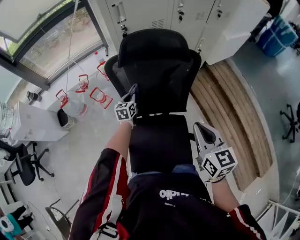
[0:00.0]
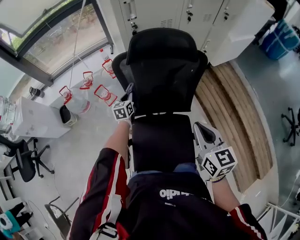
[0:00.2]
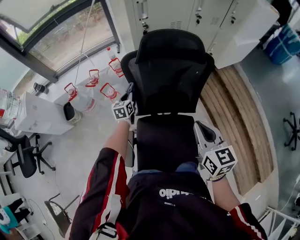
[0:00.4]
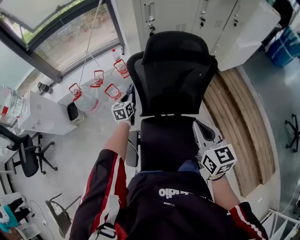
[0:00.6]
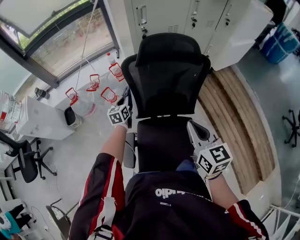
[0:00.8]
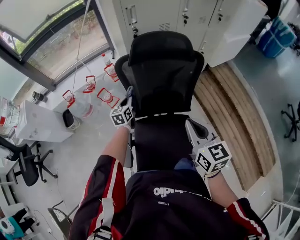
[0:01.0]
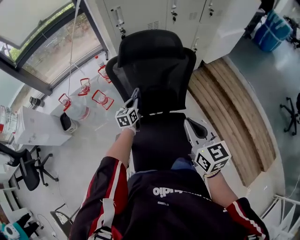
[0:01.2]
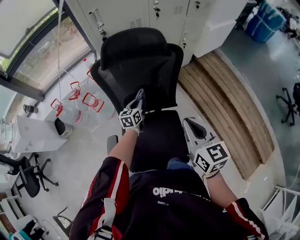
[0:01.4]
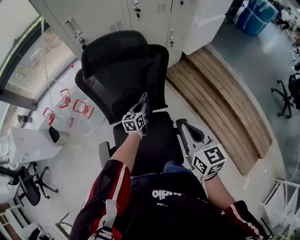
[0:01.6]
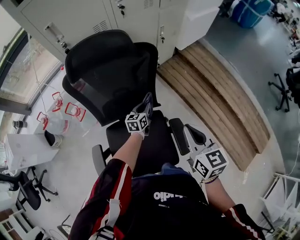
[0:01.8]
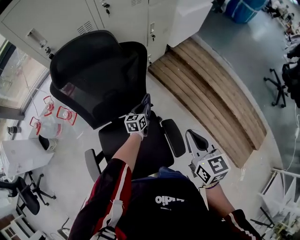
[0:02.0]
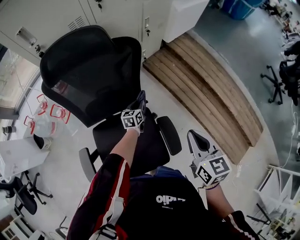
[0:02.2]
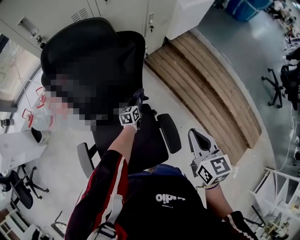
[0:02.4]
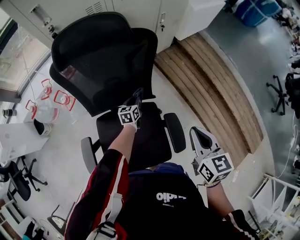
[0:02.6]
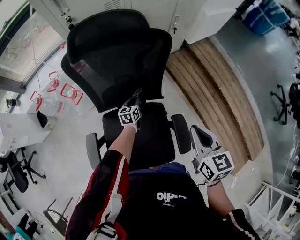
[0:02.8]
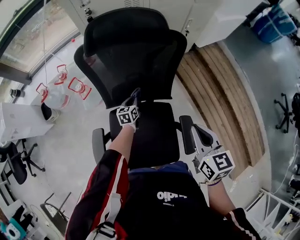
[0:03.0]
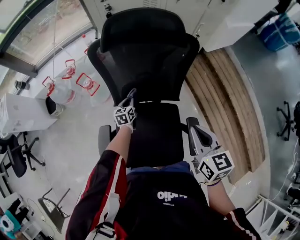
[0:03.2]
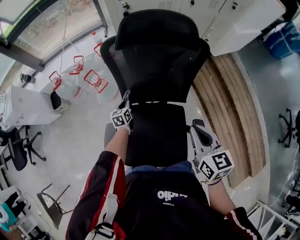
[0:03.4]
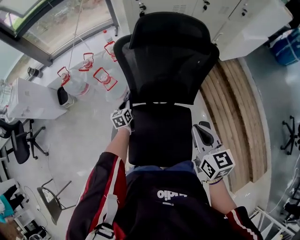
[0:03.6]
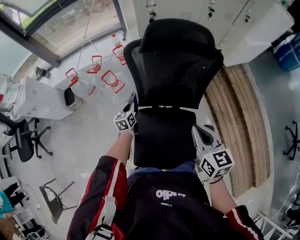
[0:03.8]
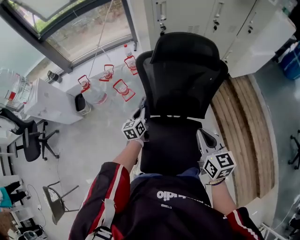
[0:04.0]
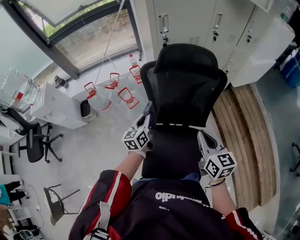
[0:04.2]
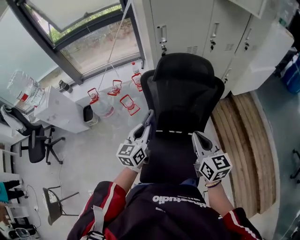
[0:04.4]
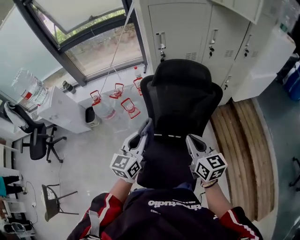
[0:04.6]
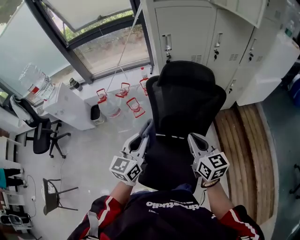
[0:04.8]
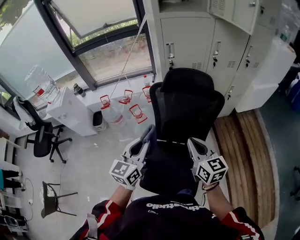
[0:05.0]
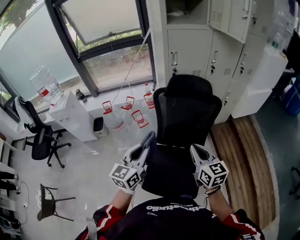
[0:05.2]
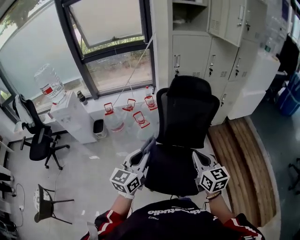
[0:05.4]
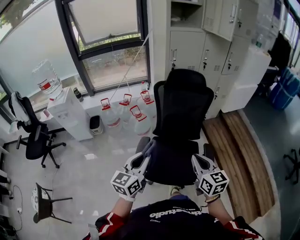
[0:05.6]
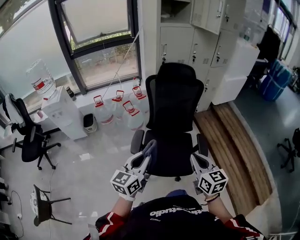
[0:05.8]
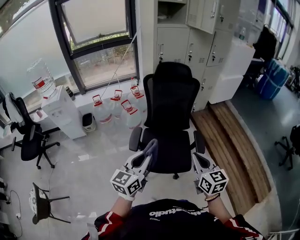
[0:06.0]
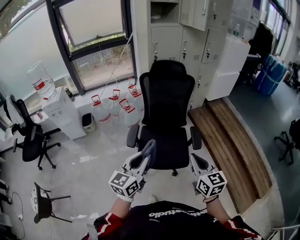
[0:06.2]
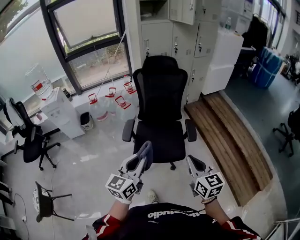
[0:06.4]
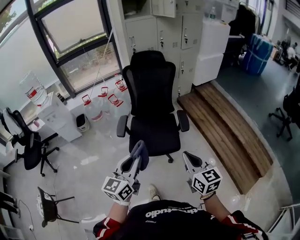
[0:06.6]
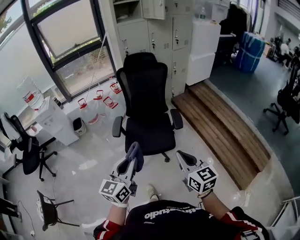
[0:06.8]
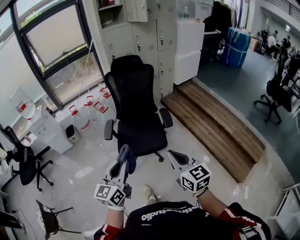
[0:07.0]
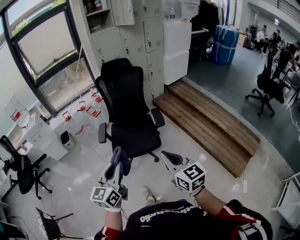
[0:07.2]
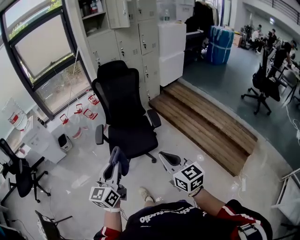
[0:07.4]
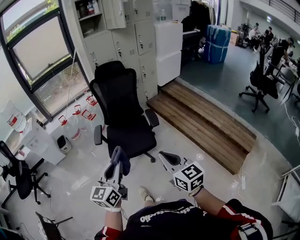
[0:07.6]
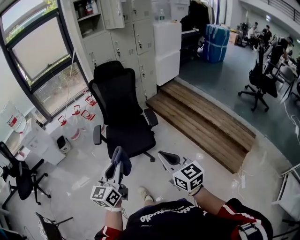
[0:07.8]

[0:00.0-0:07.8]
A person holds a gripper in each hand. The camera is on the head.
0:00.0 to 0:01.6: The right gripper moves to the right, some 10 cm, while the left gripper is displaced to the right by roughly 20 cm.
0:01.6 to 0:03.2: The right gripper moves about 15 cm to the right and comes back. Meanwhile the left gripper travels to the left and downward by about 20 cm.
0:03.2 to 0:04.6: The left gripper heads upward, covering roughly 40 cm, and rotates approximately 30 degrees. The right gripper shifts roughly 15 cm upward and to the left, and turns by about 20 degrees.
0:04.6 to 0:06.2: The two grippers travel together, backward, about 50 cm.
0:06.2 to 0:07.8: The right gripper goes approximately 25 cm backward. Meanwhile the left gripper goes about 25 cm backward and to the right.

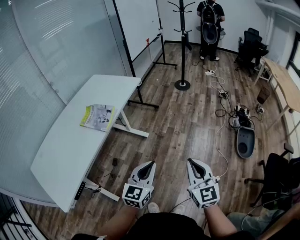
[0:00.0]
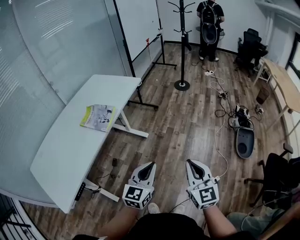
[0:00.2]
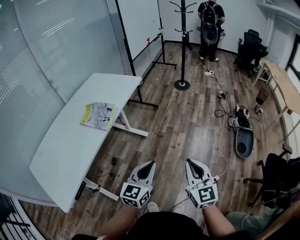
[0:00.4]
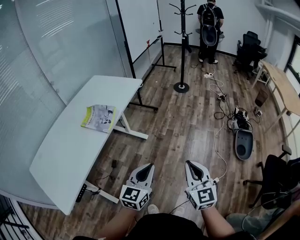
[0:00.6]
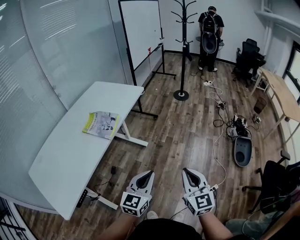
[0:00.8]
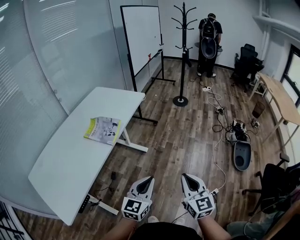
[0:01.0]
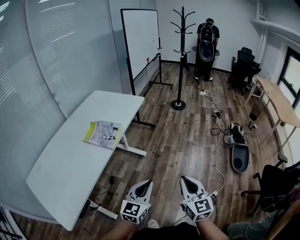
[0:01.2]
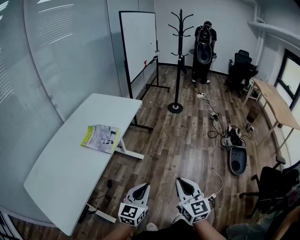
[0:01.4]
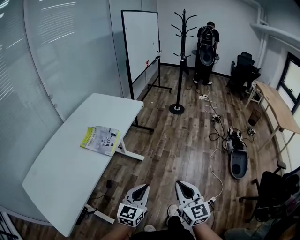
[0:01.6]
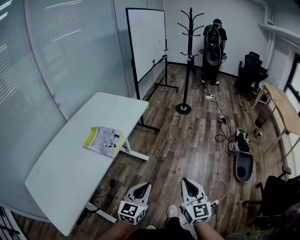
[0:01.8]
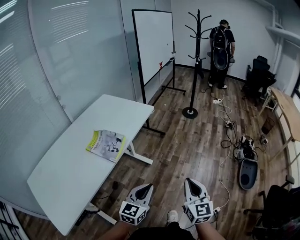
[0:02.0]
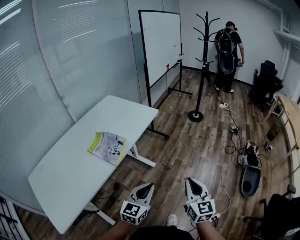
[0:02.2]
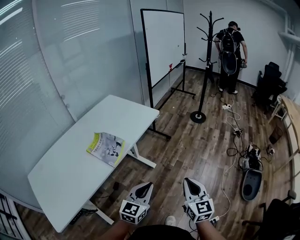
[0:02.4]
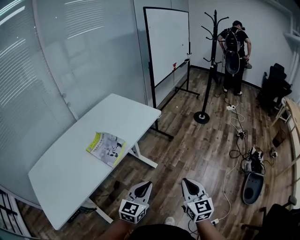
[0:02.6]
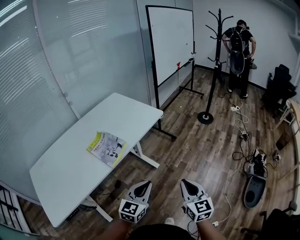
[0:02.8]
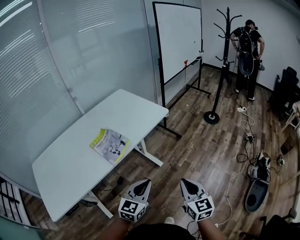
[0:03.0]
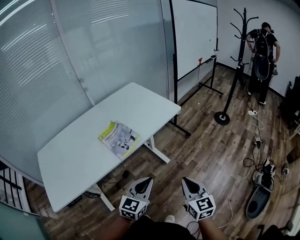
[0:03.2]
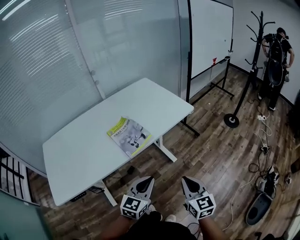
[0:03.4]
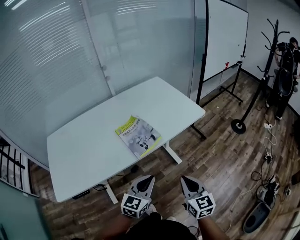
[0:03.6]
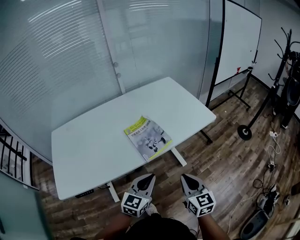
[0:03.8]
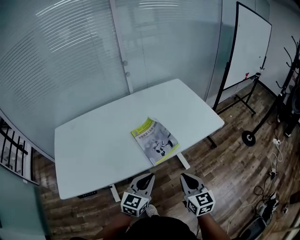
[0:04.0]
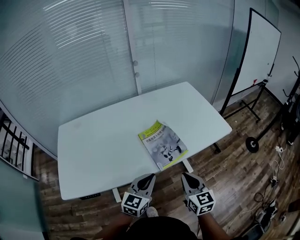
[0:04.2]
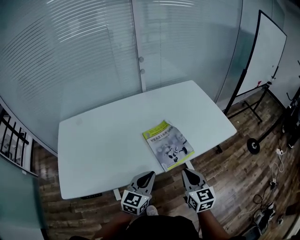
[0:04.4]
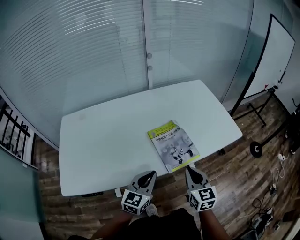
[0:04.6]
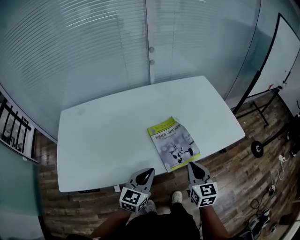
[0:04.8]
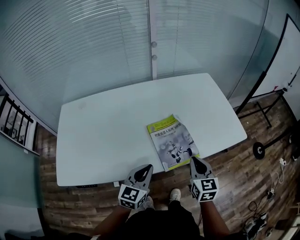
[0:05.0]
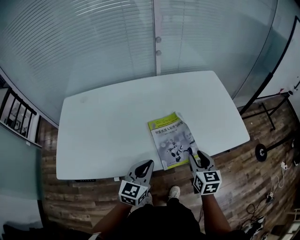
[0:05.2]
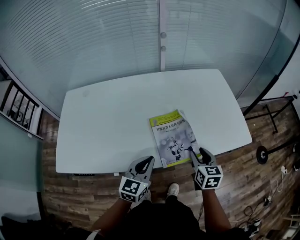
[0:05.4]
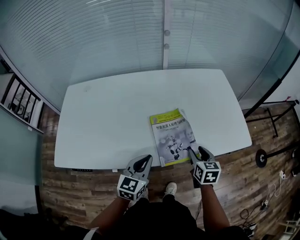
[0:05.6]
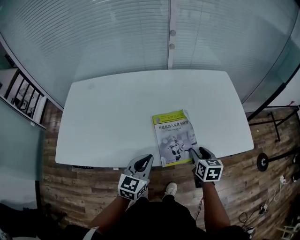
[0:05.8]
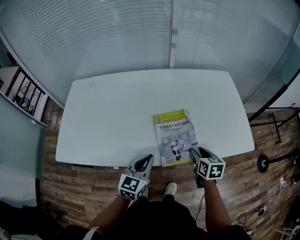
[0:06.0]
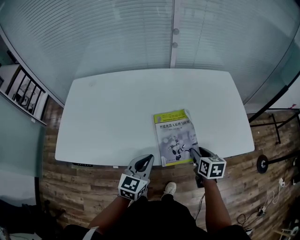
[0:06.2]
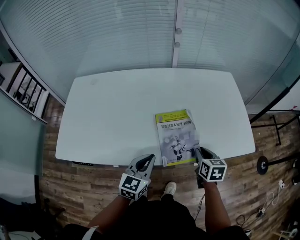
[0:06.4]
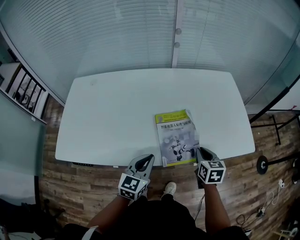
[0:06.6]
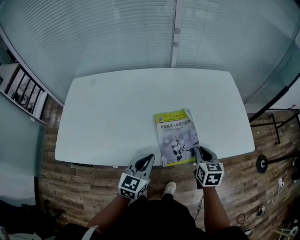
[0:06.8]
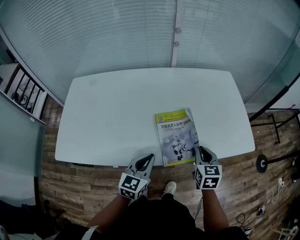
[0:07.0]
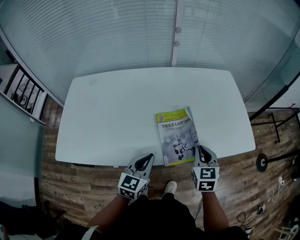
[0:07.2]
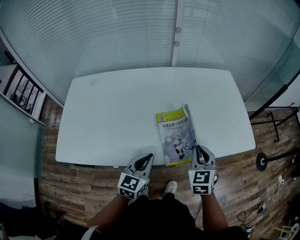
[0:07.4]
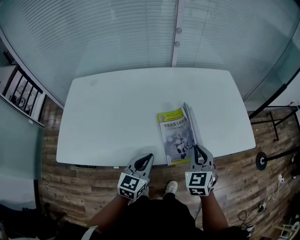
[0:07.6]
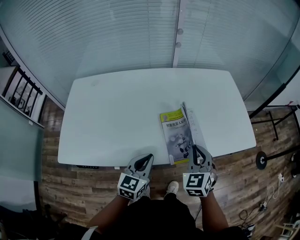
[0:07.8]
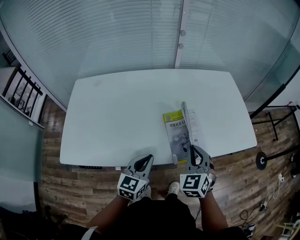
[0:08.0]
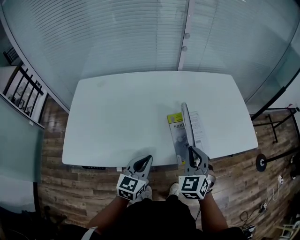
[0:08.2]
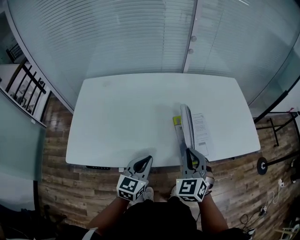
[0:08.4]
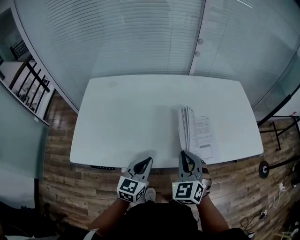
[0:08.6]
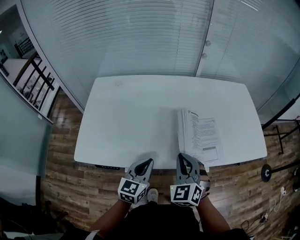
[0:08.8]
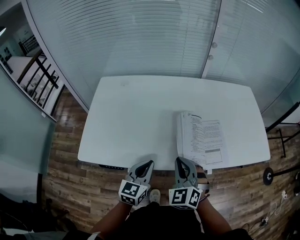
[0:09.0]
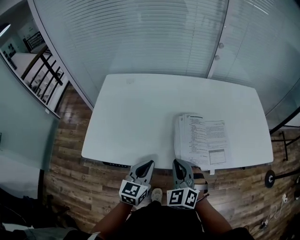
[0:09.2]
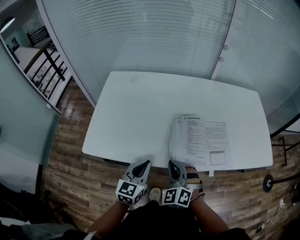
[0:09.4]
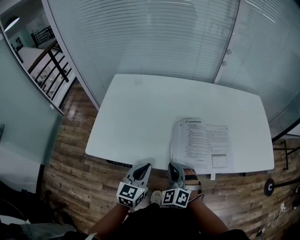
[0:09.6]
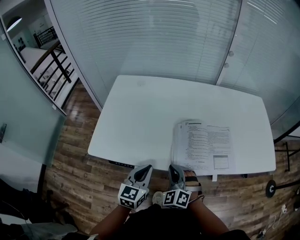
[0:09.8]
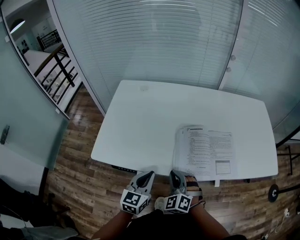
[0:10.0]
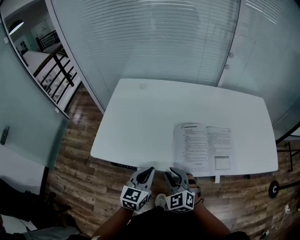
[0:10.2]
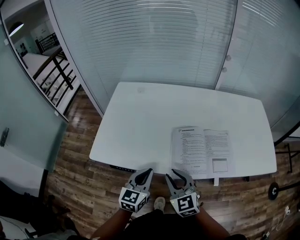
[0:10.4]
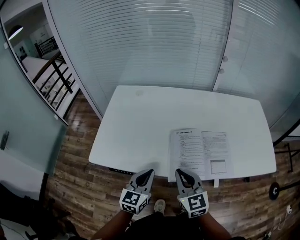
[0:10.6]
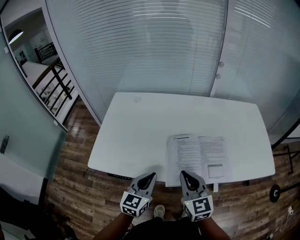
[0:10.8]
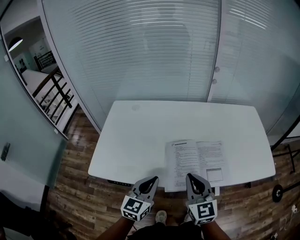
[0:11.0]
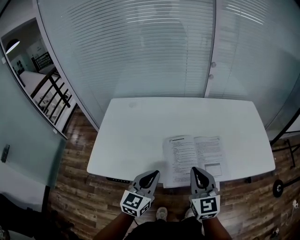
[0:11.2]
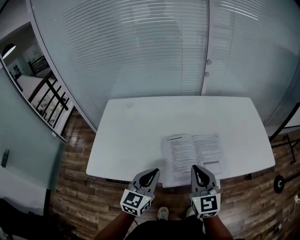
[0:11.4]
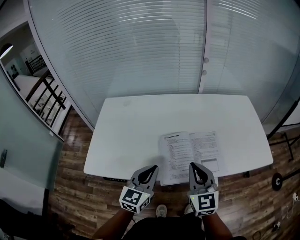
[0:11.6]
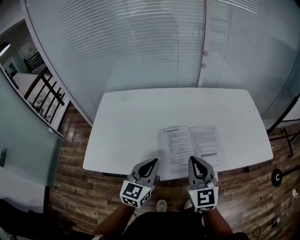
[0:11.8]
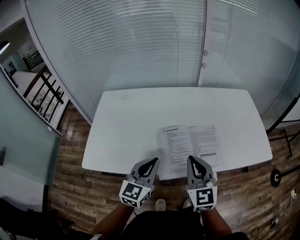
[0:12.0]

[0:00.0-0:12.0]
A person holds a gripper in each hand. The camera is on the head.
0:00.0 to 0:01.6: The grippers both shift to the left by some 10 cm.
0:01.6 to 0:03.0: The grippers both shift forward by some 20 cm. The right gripper changes its angle by roughly 20 degrees.
0:03.0 to 0:04.4: The left gripper shifts by some 25 cm, and turns by about 30 degrees; the right gripper moves roughly 30 cm, and swivels roughly 30 degrees.
0:04.4 to 0:06.0: The left gripper ends up some 5 cm from where it was, and swivels roughly 20 degrees; the right gripper is displaced forward and downward by roughly 20 cm, changes its angle by approximately 30 degrees, and opens.
0:06.0 to 0:07.6: The right gripper shifts approximately 10 cm upward and to the left, rotates about 40 degrees, and closes up.
0:07.6 to 0:09.0: The left gripper heads to the left, covering about 15 cm. Meanwhile the right gripper travels to the left and backward by approximately 25 cm, and turns by roughly 30 degrees.
0:09.0 to 0:10.4: The right gripper heads to the left, covering some 5 cm, turns by some 30 degrees, and opens up, while the left gripper changes place by roughly 5 cm.
0:10.4 to 0:12.0: The grippers both shift to the right and upward by some 15 cm. The right gripper swivels roughly 30 degrees, and closes its fingers.

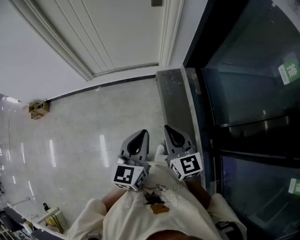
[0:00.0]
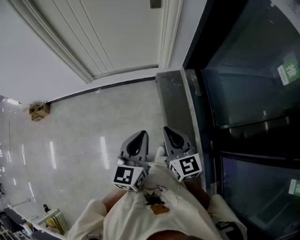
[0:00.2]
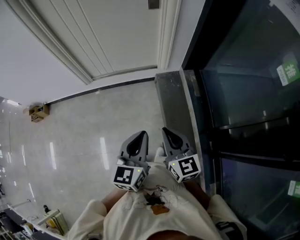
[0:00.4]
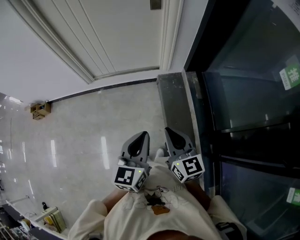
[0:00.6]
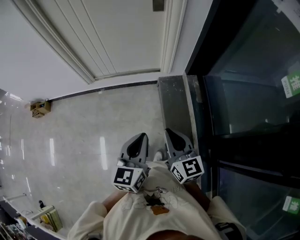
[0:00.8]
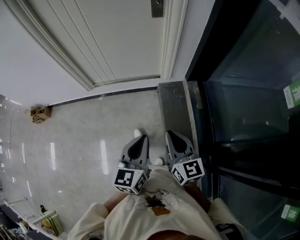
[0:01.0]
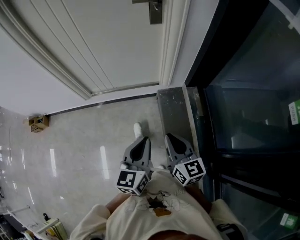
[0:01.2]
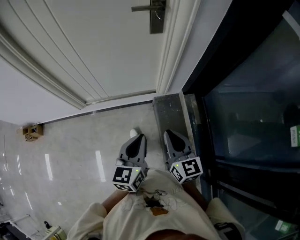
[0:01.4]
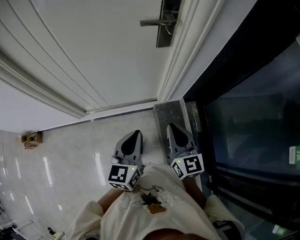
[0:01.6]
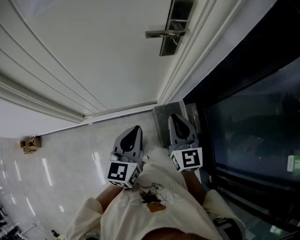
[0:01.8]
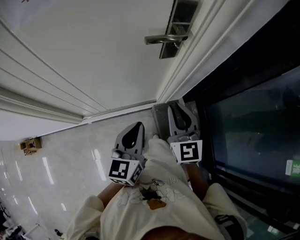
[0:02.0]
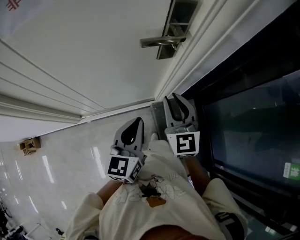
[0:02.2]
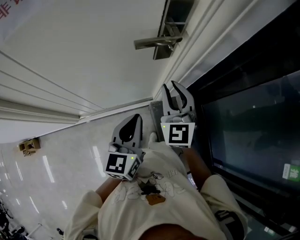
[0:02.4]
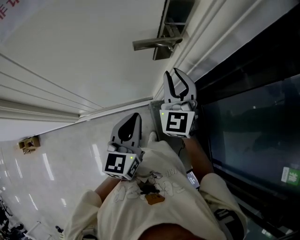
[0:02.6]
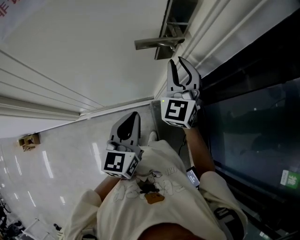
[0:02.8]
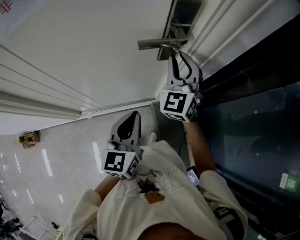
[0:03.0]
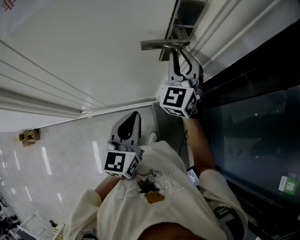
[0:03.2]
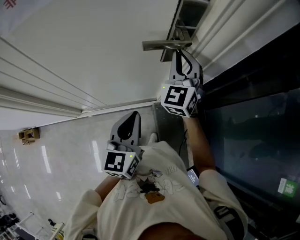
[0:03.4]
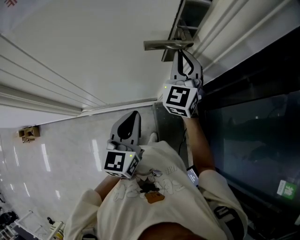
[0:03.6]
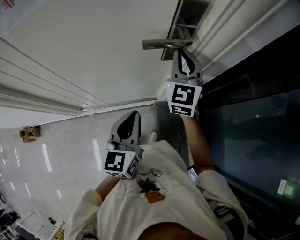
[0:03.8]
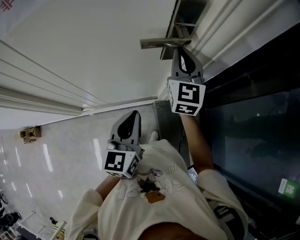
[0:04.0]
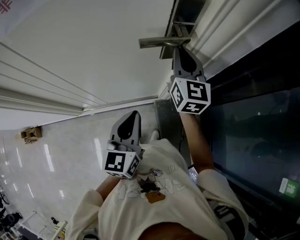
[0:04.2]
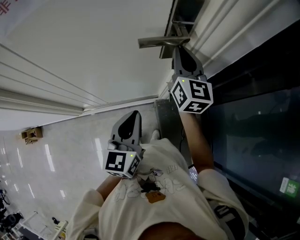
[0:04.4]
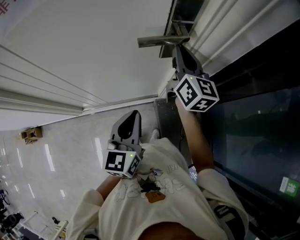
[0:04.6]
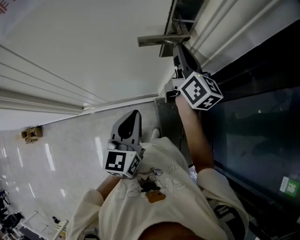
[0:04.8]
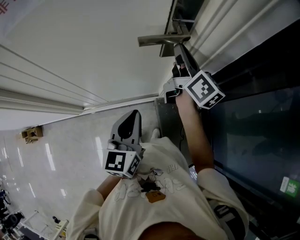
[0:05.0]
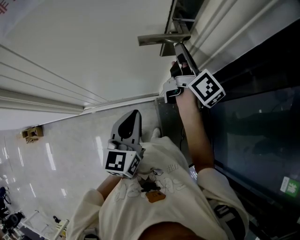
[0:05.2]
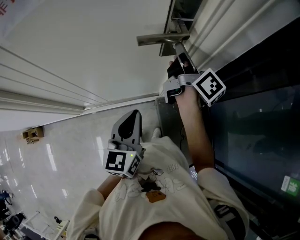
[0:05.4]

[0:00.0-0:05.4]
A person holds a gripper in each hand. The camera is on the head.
0:00.0 to 0:01.4: The two grippers go some 30 cm forward.
0:01.4 to 0:02.8: The two grippers go roughly 35 cm forward. The right gripper rotates around the line of its fingers by some 40 degrees, counterclockwise from behind.
0:02.8 to 0:04.0: The right gripper rotates some 20 degrees.
0:04.0 to 0:05.4: The right gripper rotates around the line of its fingers by about 70 degrees, clockwise from behind.
